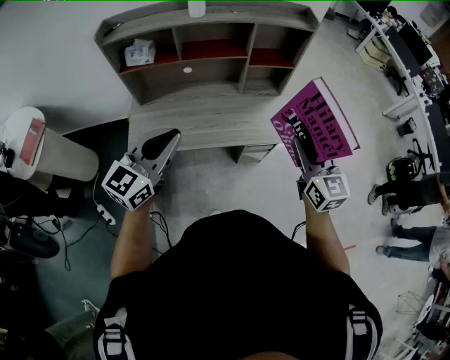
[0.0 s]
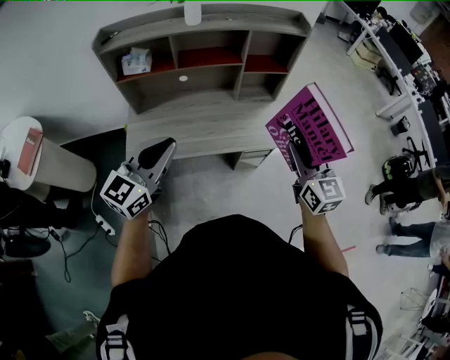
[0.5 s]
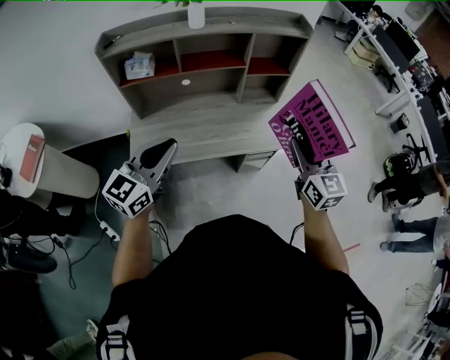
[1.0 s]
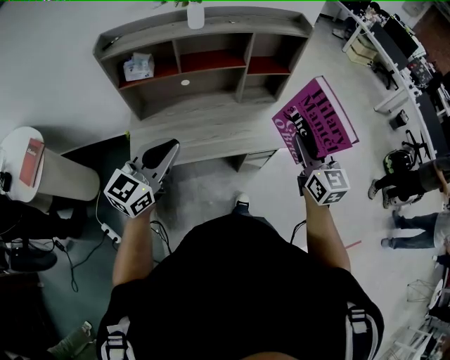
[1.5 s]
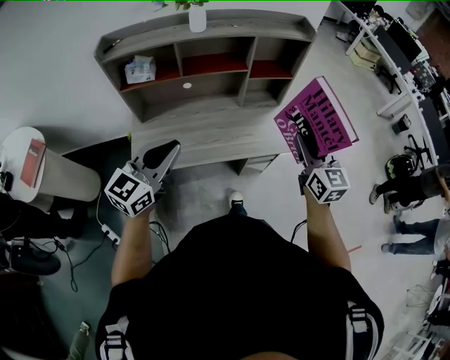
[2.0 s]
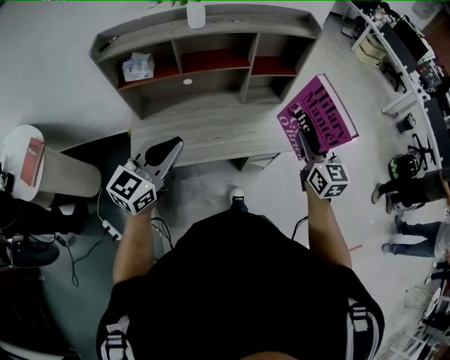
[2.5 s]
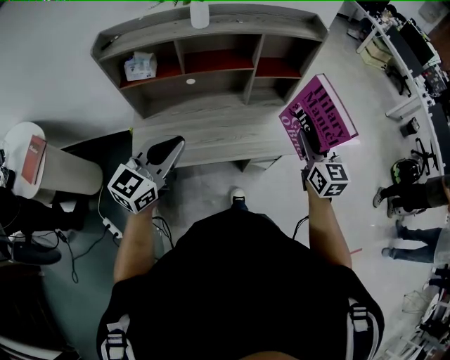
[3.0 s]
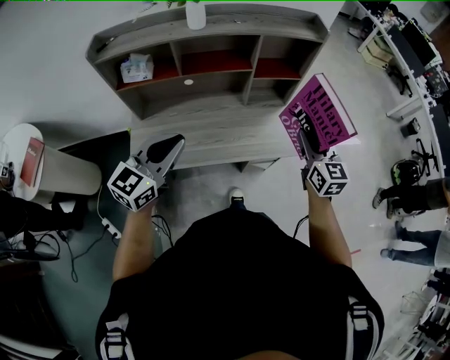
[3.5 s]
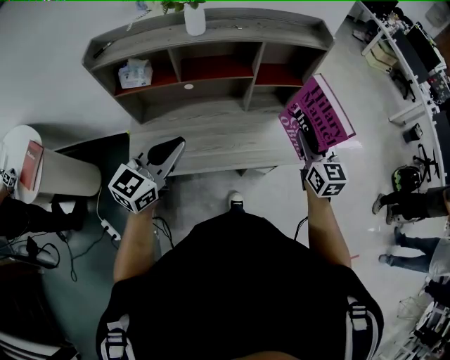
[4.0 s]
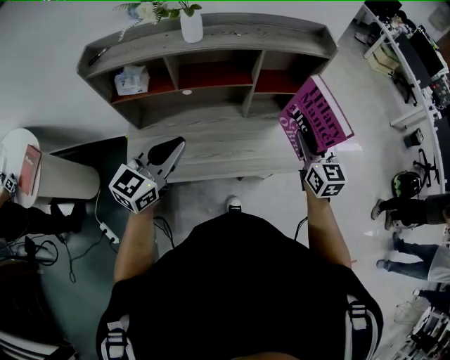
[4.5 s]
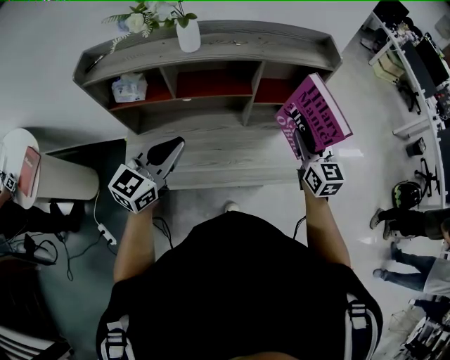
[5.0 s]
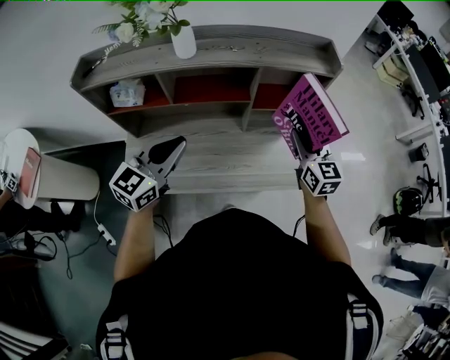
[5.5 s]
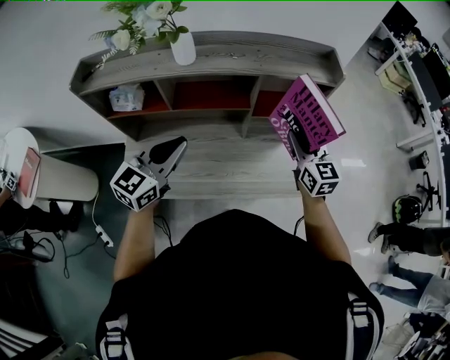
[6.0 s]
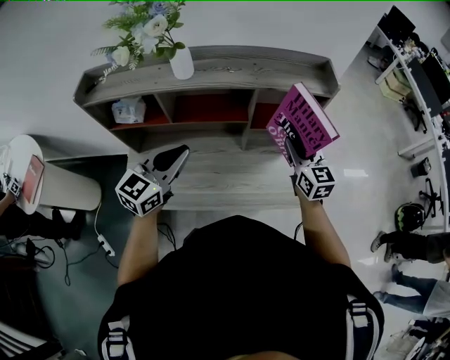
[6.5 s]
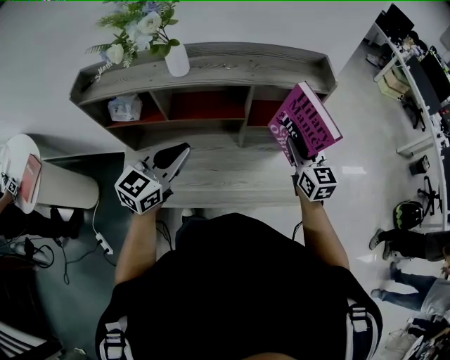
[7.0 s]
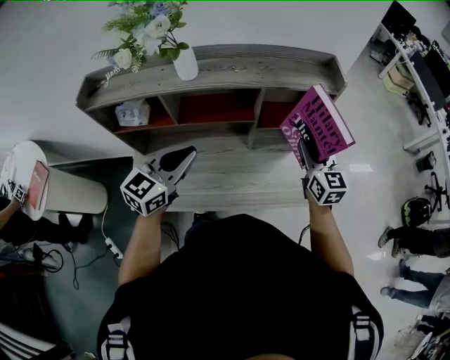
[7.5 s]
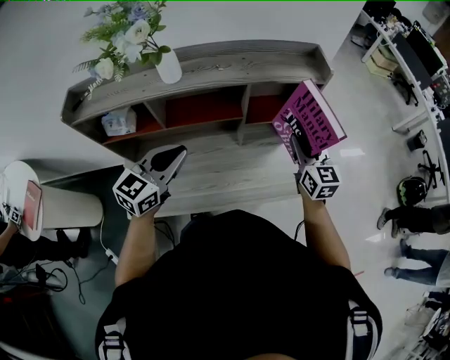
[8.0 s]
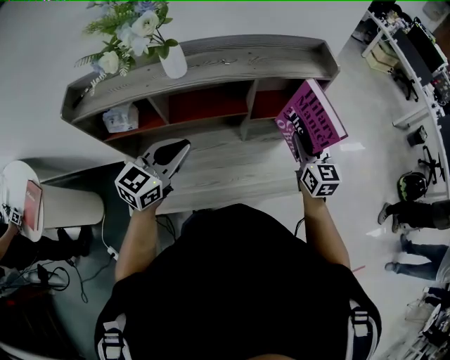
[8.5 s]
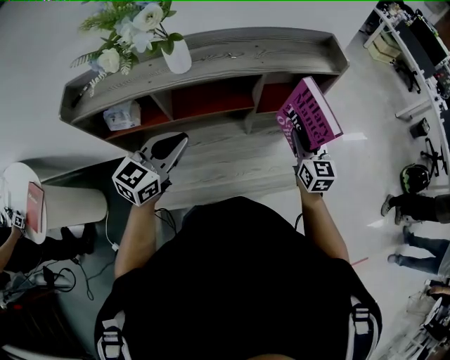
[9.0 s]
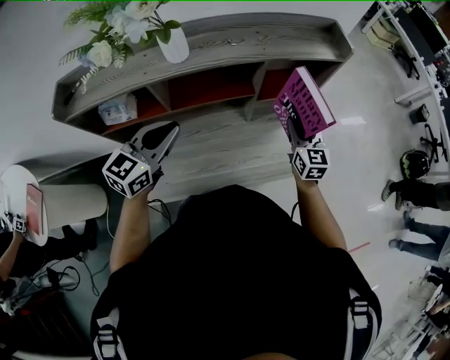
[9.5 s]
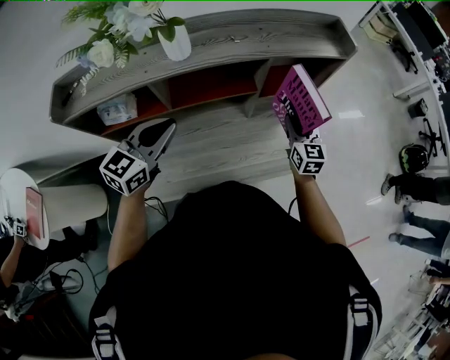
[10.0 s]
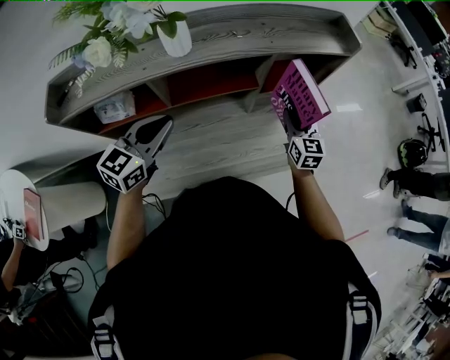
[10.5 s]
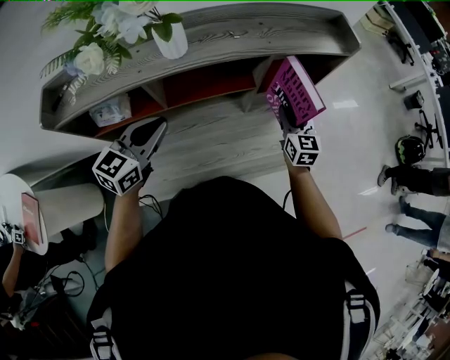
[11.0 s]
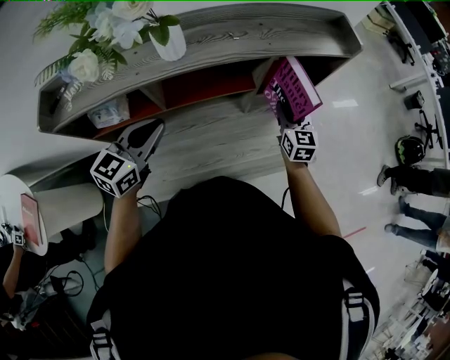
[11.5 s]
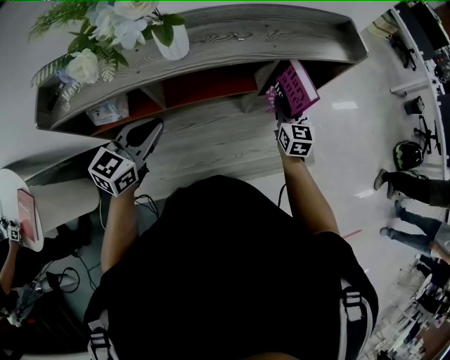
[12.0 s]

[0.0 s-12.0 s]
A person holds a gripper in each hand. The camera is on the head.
0.0 to 2.0 s: The grippers stay close to where they were, moving slightly.
2.0 to 4.0 s: Both grippers travel together forward, some 10 cm.
4.0 to 6.0 s: Both grippers move forward, roughly 15 cm.
6.0 to 8.0 s: The grippers move only a little.
8.0 to 10.0 s: The right gripper heads downward and to the left, covering roughly 10 cm. The left gripper shifts roughly 10 cm to the left.
10.0 to 12.0 s: The left gripper moves about 5 cm. Meanwhile the right gripper heads forward, covering approximately 5 cm.

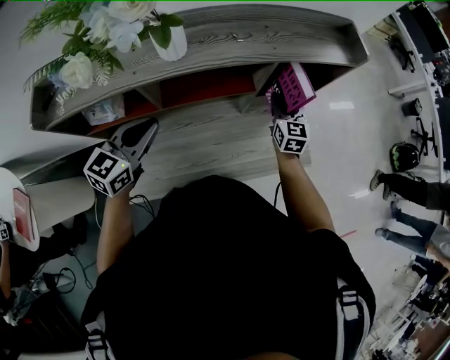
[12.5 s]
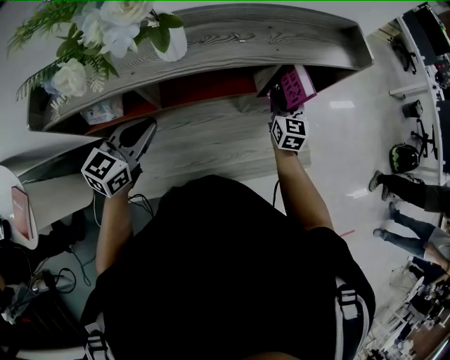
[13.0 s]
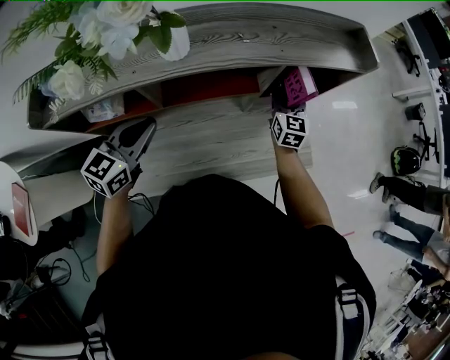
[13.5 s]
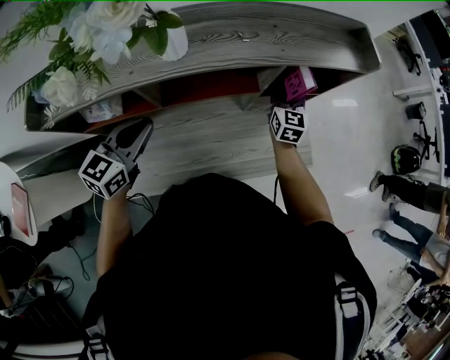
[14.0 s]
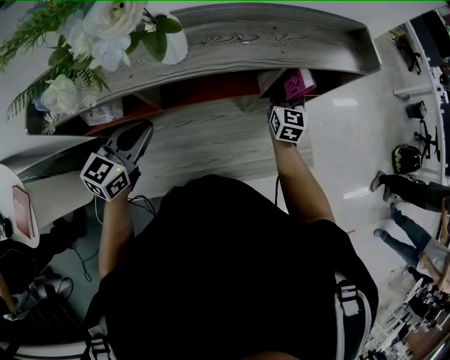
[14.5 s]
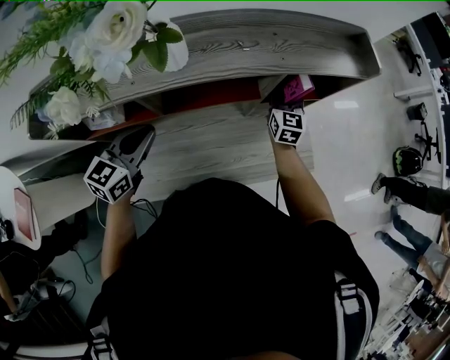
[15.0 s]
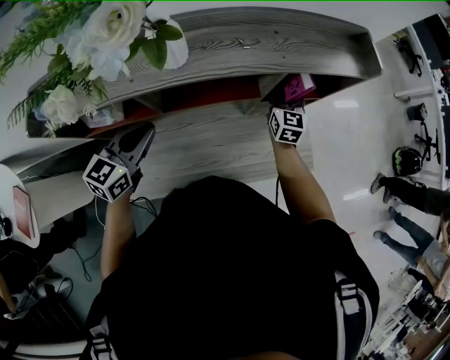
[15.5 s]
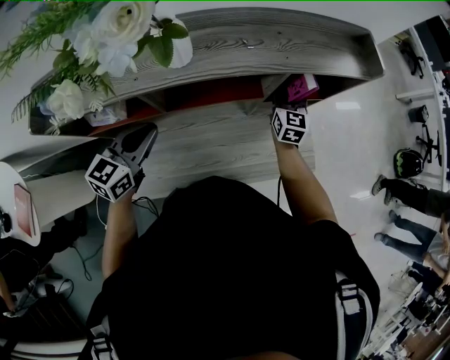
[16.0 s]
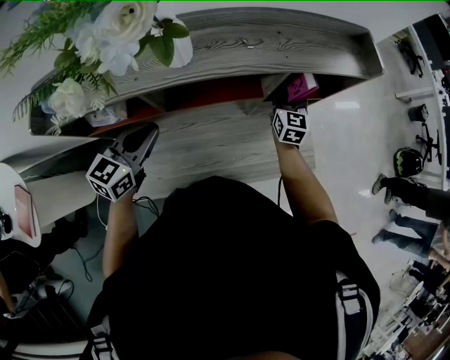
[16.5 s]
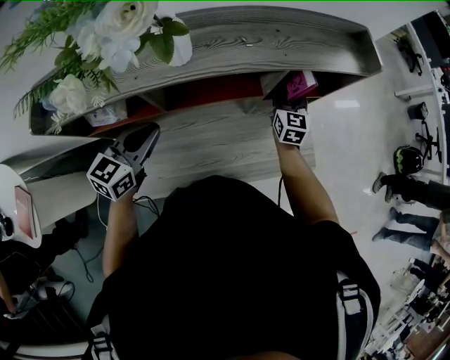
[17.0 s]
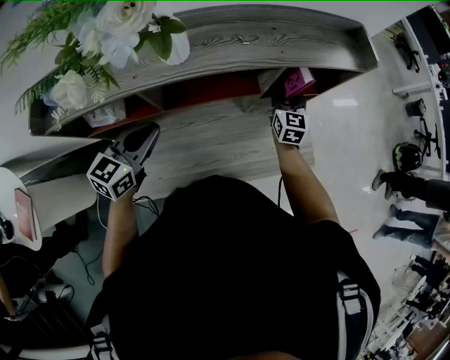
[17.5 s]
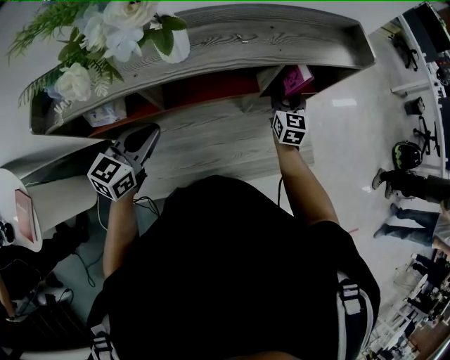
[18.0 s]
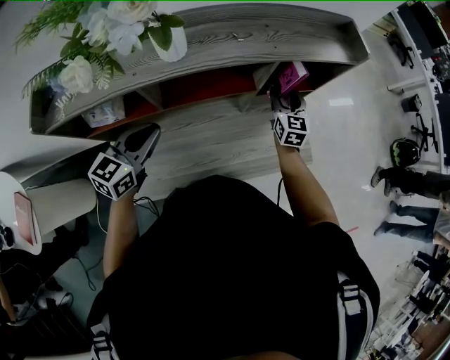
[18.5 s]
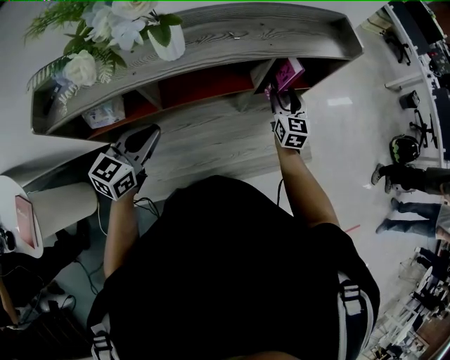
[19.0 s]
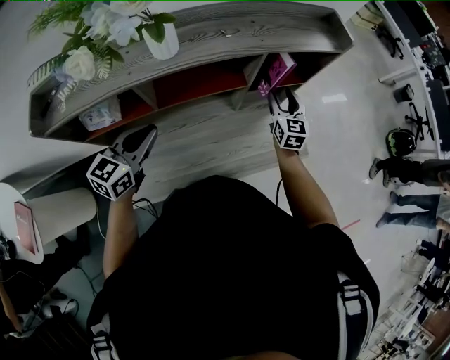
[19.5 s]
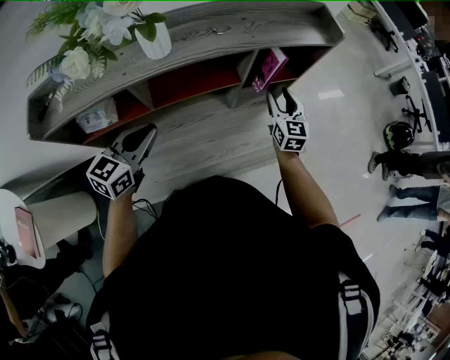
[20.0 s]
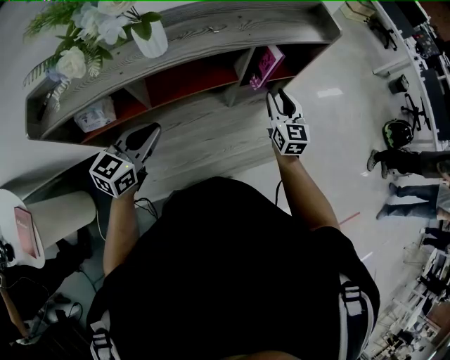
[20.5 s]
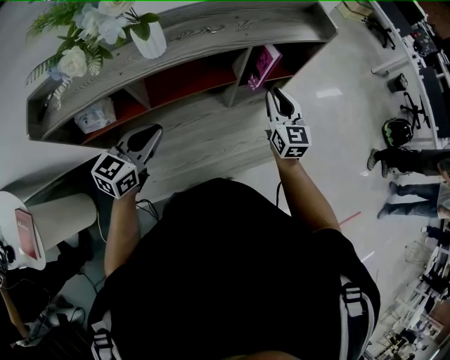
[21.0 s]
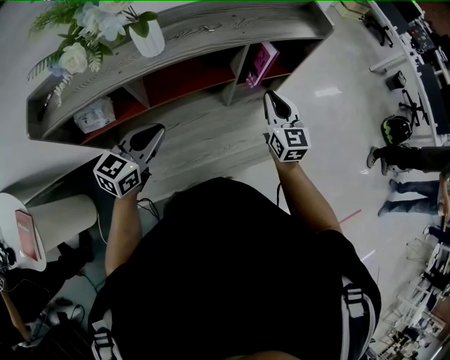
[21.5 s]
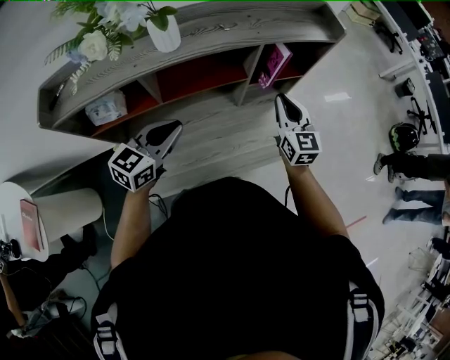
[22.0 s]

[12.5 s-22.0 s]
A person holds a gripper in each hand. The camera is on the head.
12.5 to 14.5 s: The right gripper moves about 5 cm.
14.5 to 16.5 s: Both grippers stay about where they are.
16.5 to 18.0 s: The grippers move only a little.
18.0 to 20.0 s: The right gripper goes approximately 10 cm backward and to the right.
20.0 to 22.0 s: The right gripper goes about 10 cm backward and upward, and closes its fingers, while the left gripper is displaced to the right by roughly 5 cm.

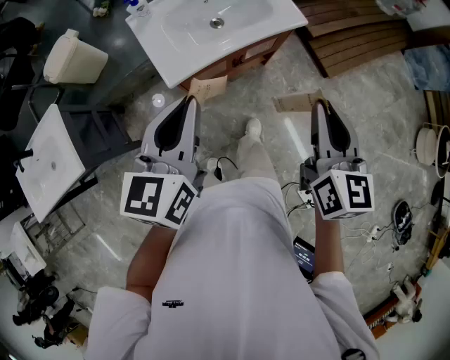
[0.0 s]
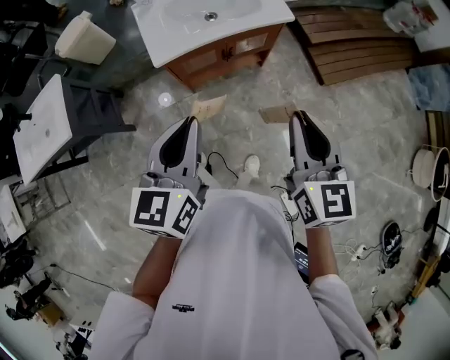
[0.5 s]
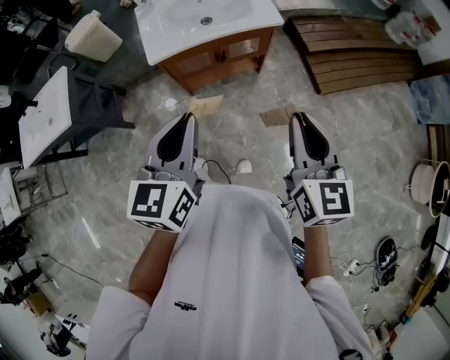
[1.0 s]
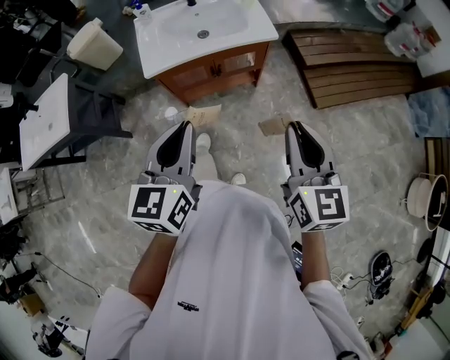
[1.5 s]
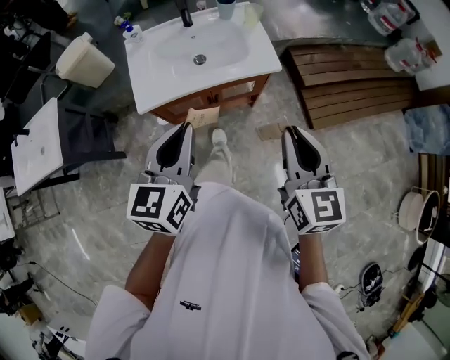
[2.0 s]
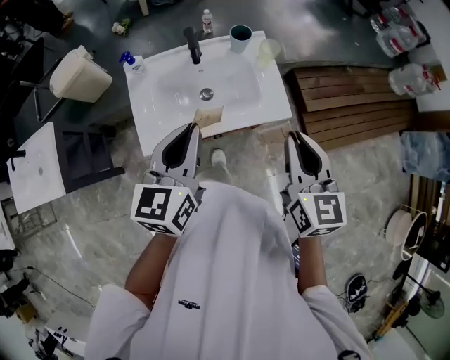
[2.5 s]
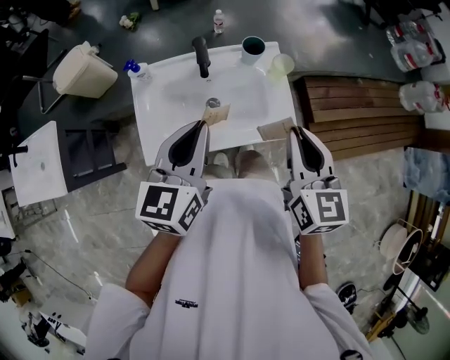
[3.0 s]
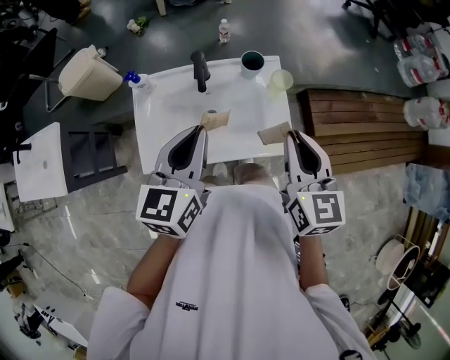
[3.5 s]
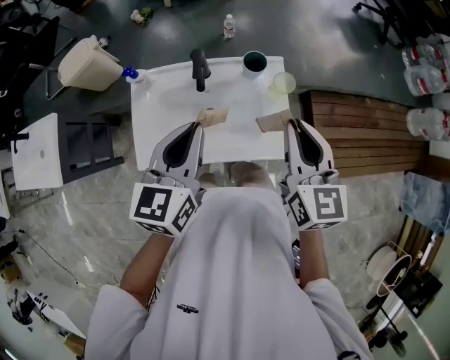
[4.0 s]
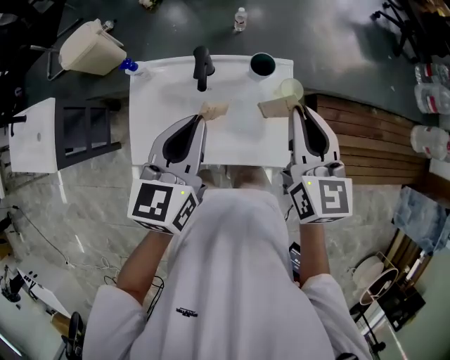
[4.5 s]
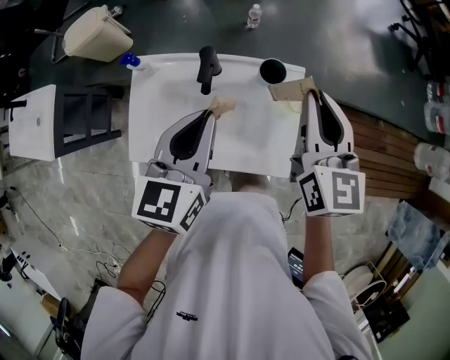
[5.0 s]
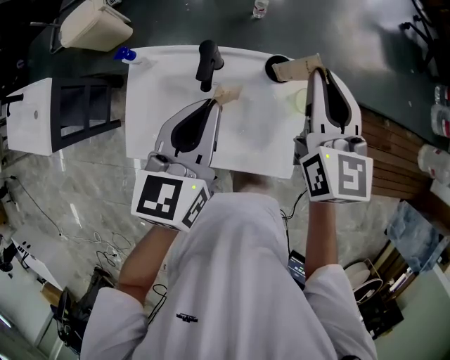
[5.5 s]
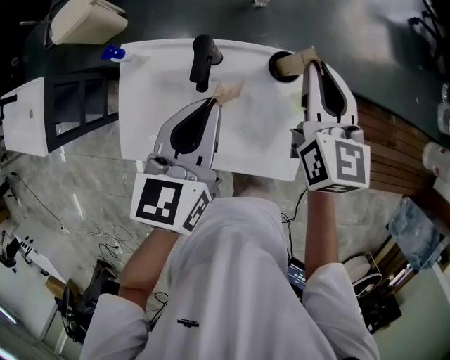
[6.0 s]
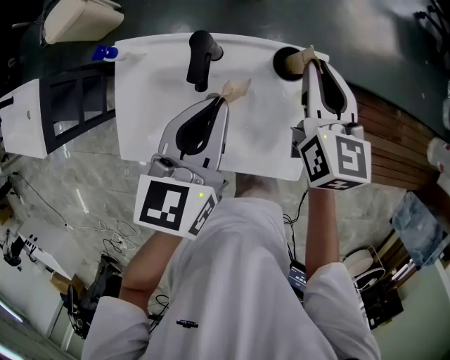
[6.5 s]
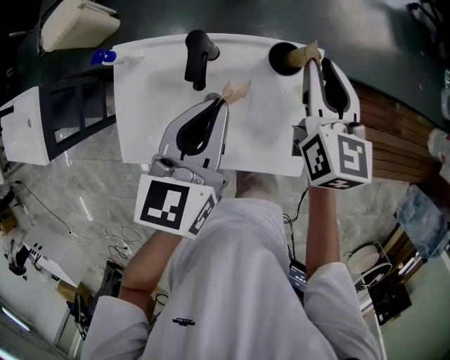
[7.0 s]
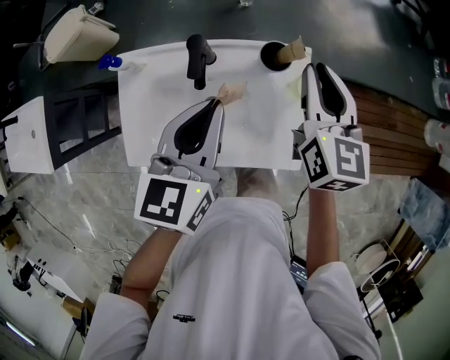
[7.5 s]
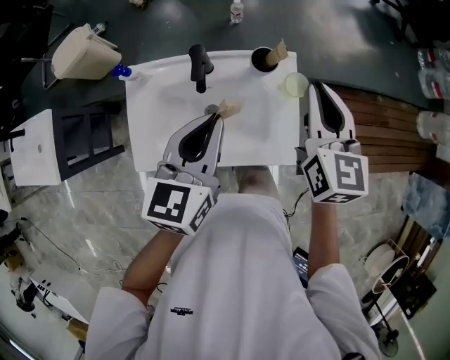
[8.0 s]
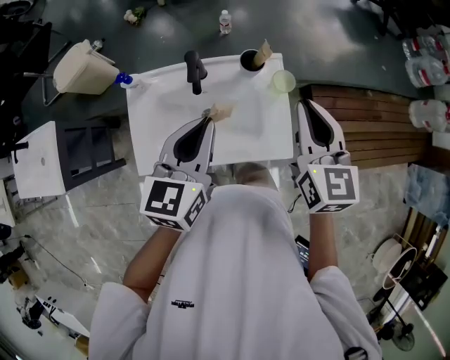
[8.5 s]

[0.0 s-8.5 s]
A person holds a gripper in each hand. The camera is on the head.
0.0 to 2.0 s: The grippers both shift to the right by about 15 cm. The left gripper moves approximately 20 cm backward and comes back; the right gripper reaches about 15 cm backward, then returns.
2.0 to 4.0 s: Both grippers move forward, about 35 cm.
4.0 to 6.5 s: The right gripper heads forward and downward, covering some 25 cm. The left gripper moves forward and downward, some 20 cm.
6.5 to 8.5 s: The left gripper goes roughly 15 cm backward and upward, while the right gripper is displaced backward and upward by about 20 cm.
